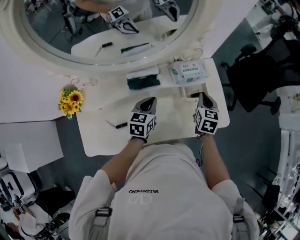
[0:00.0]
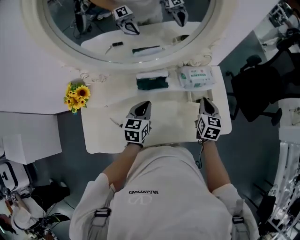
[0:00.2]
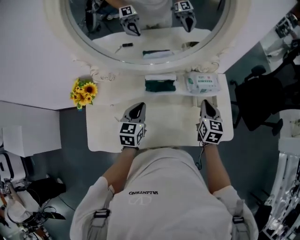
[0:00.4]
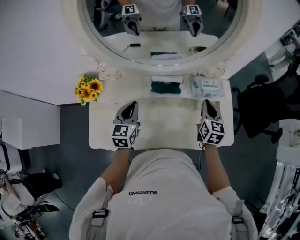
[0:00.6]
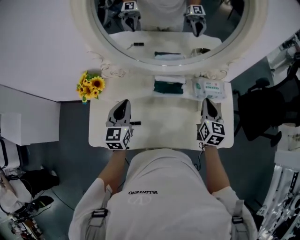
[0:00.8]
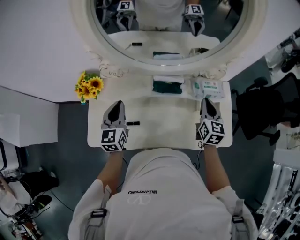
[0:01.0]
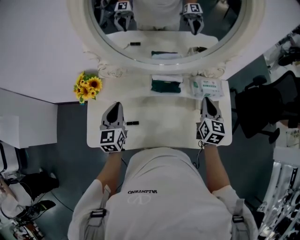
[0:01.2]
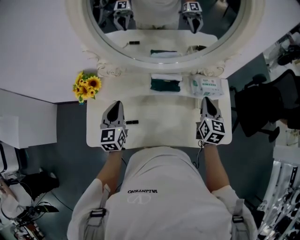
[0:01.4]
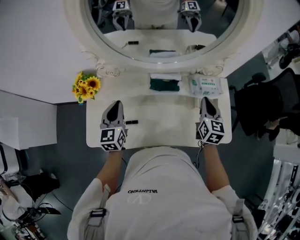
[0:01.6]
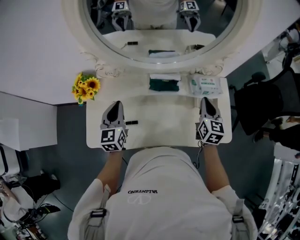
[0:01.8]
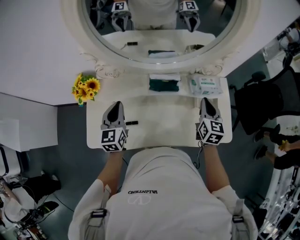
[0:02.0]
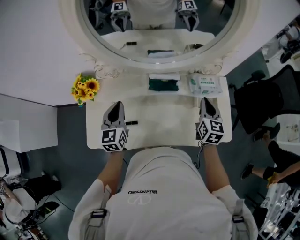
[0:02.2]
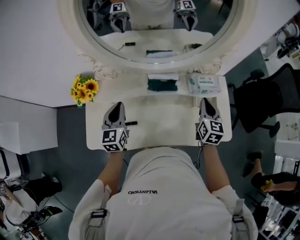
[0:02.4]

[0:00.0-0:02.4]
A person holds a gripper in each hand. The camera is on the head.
0:00.0 to 0:01.2: The right gripper is displaced to the left and upward by about 15 cm, and changes its angle by some 20 degrees, while the left gripper travels to the left by about 25 cm, and turns by approximately 40 degrees.
0:01.2 to 0:02.4: The grippers stay close to where they were, moving slightly.

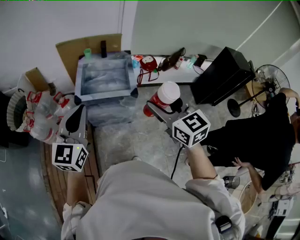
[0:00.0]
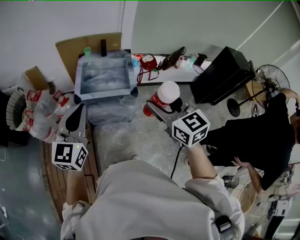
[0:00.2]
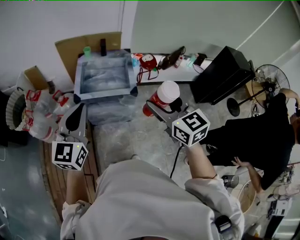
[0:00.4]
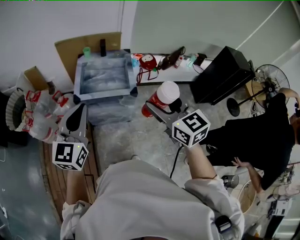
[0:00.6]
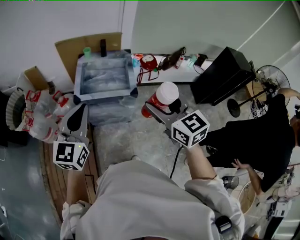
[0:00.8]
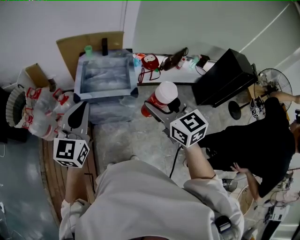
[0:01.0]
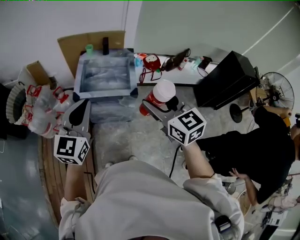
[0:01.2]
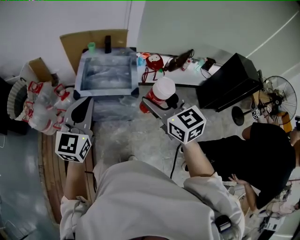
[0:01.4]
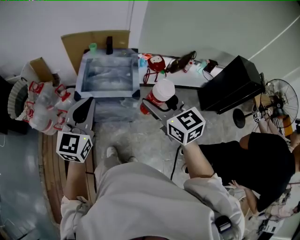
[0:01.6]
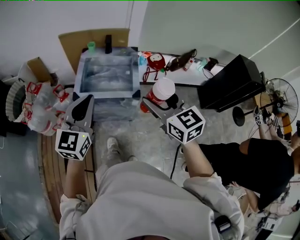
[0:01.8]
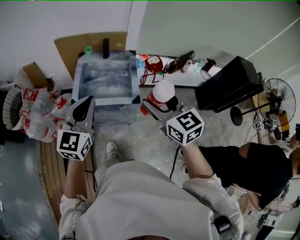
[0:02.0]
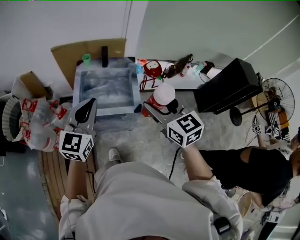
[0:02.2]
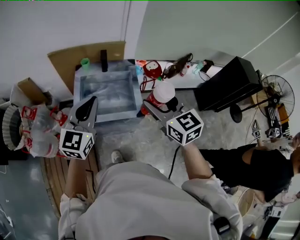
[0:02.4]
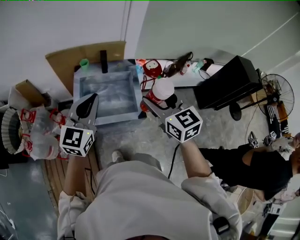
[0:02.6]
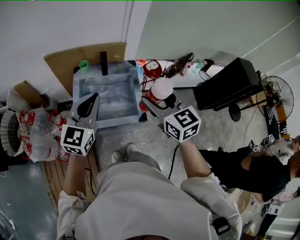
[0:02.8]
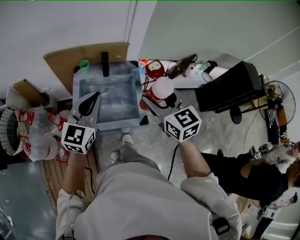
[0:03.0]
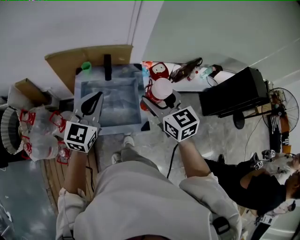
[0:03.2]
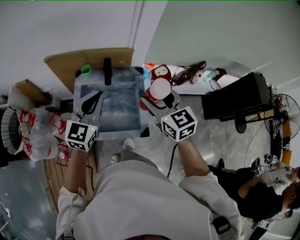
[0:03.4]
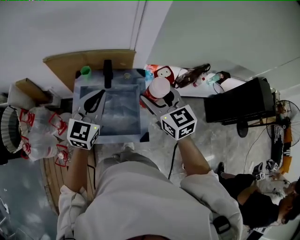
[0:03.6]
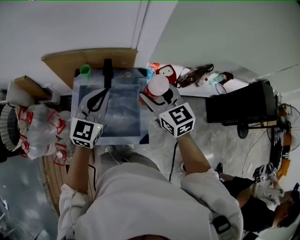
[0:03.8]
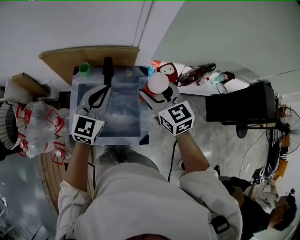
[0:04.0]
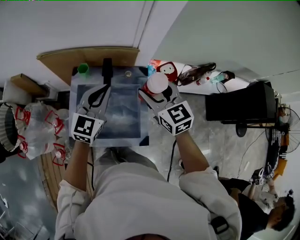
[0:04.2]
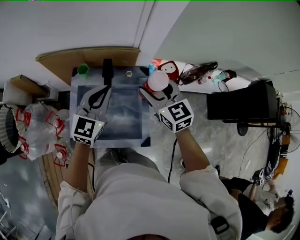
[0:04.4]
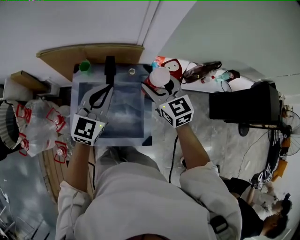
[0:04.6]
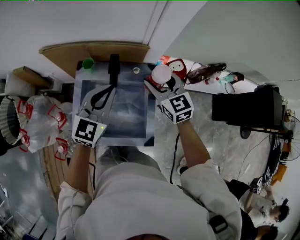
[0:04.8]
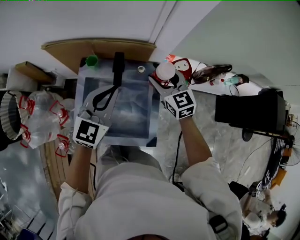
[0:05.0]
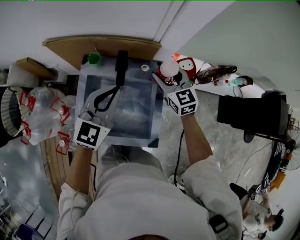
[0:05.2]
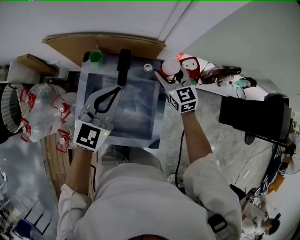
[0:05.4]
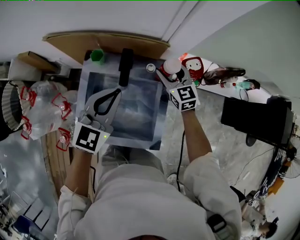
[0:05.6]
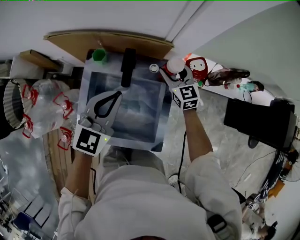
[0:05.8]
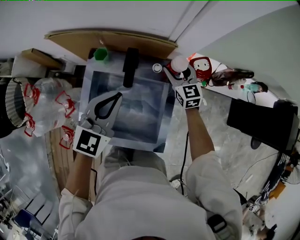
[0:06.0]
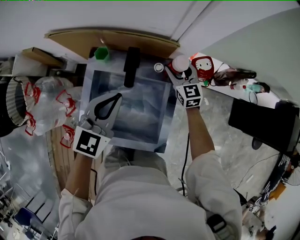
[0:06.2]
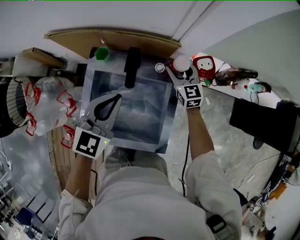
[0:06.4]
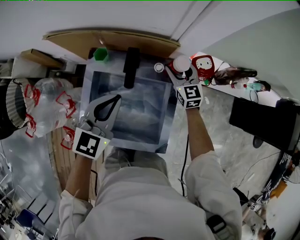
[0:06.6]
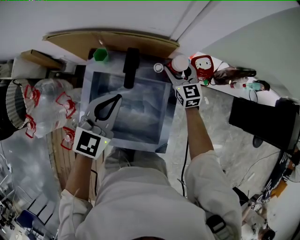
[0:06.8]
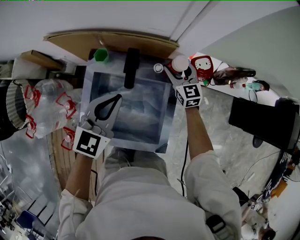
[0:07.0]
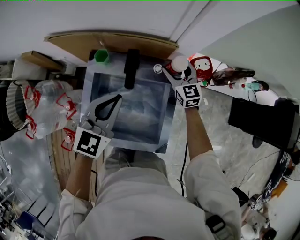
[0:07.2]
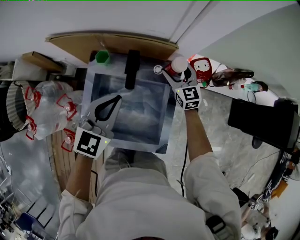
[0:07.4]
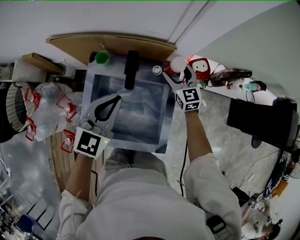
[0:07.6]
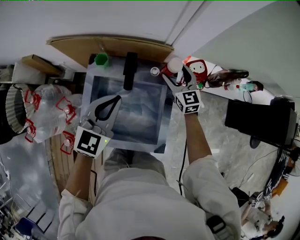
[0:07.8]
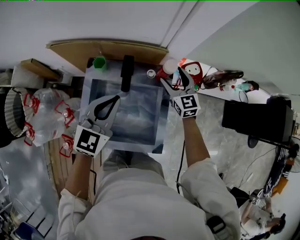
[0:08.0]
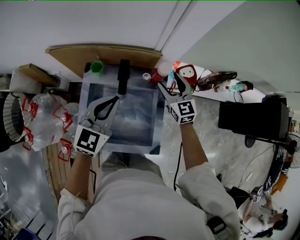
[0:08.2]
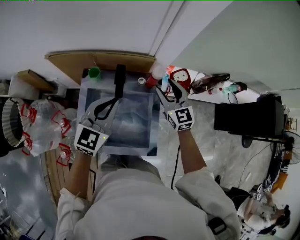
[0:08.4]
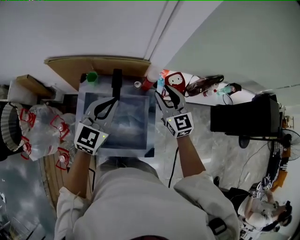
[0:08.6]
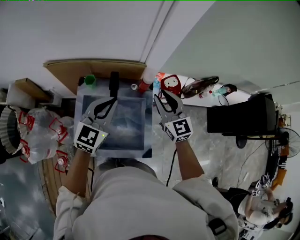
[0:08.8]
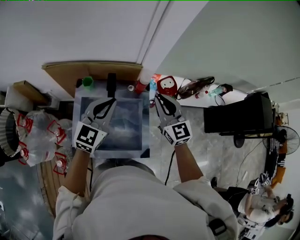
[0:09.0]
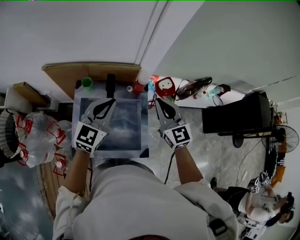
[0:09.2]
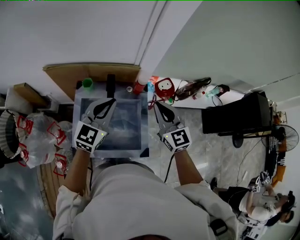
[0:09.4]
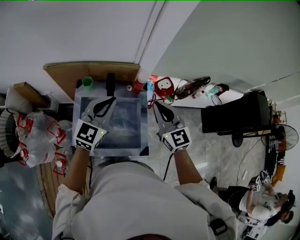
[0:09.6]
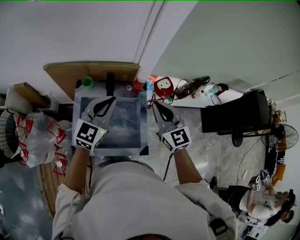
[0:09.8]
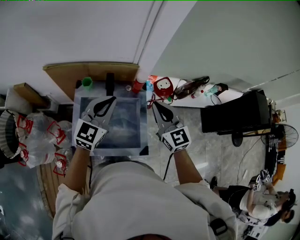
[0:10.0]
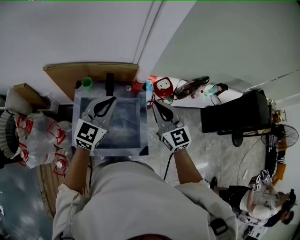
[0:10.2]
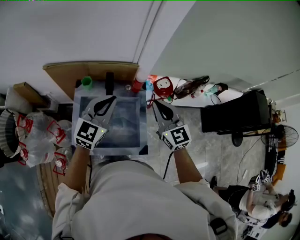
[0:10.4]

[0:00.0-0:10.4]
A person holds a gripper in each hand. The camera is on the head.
0:00.0 to 0:01.4: The left gripper shifts some 5 cm to the right. Meanwhile the right gripper moves some 5 cm.
0:01.4 to 0:03.0: Both grippers move forward, some 30 cm.
0:03.0 to 0:04.4: The grippers both shift forward and downward by approximately 25 cm.
0:04.4 to 0:06.0: The right gripper is displaced downward and forward by approximately 25 cm. The left gripper shifts about 5 cm downward.
0:06.0 to 0:07.4: The grippers move only a little.
0:07.4 to 0:09.0: The right gripper goes roughly 25 cm upward and backward, and closes; the left gripper shifts approximately 10 cm upward.
0:09.0 to 0:10.4: The right gripper goes roughly 5 cm backward.

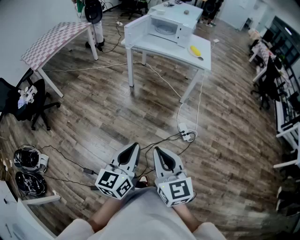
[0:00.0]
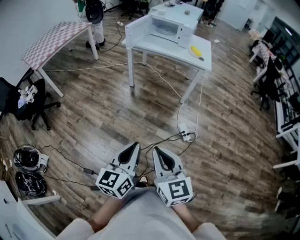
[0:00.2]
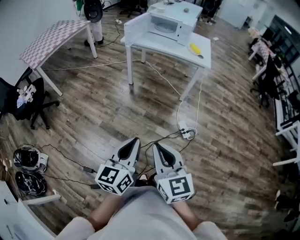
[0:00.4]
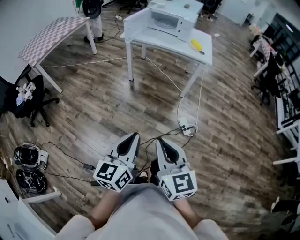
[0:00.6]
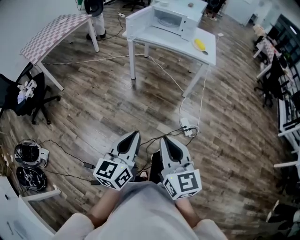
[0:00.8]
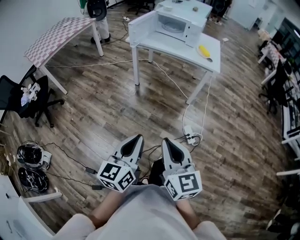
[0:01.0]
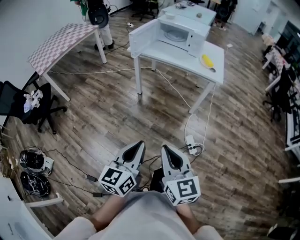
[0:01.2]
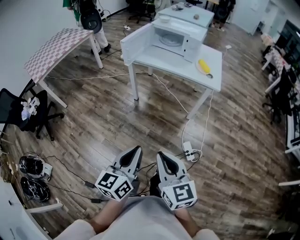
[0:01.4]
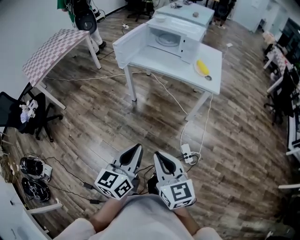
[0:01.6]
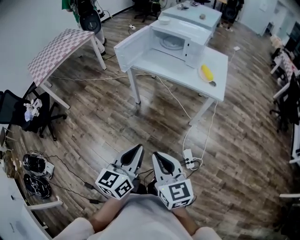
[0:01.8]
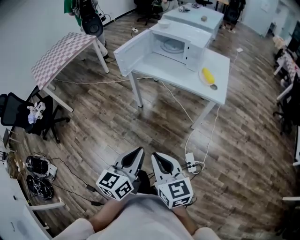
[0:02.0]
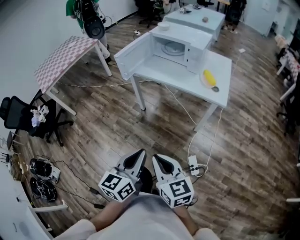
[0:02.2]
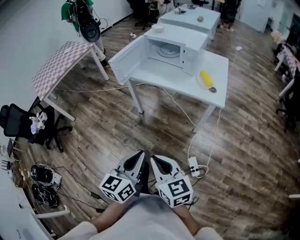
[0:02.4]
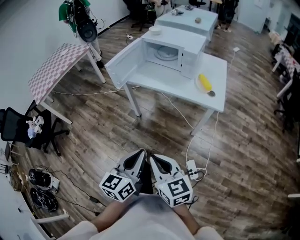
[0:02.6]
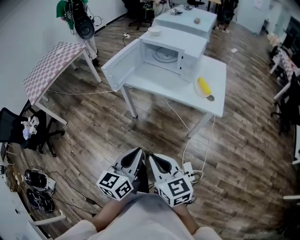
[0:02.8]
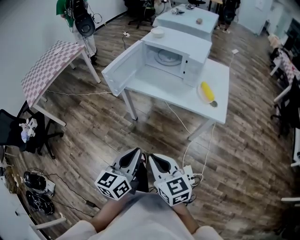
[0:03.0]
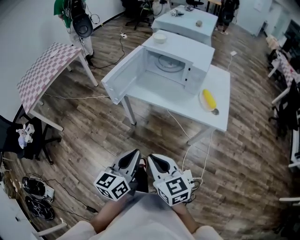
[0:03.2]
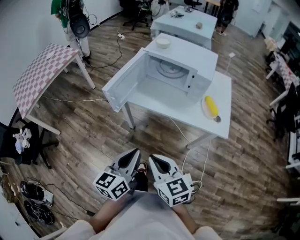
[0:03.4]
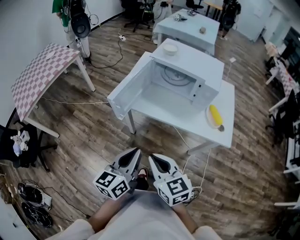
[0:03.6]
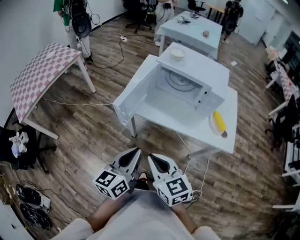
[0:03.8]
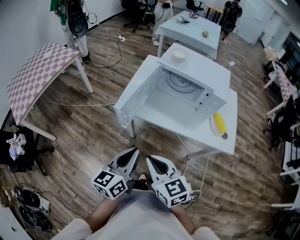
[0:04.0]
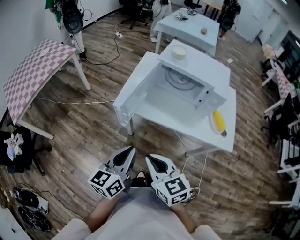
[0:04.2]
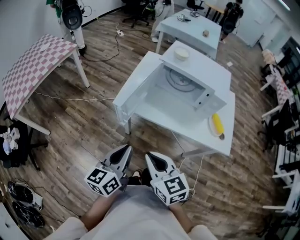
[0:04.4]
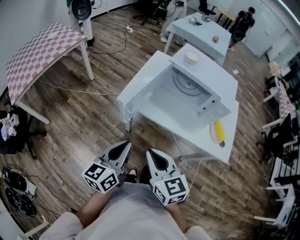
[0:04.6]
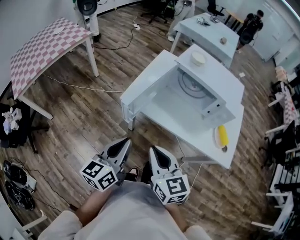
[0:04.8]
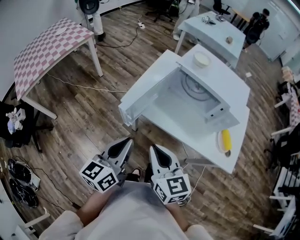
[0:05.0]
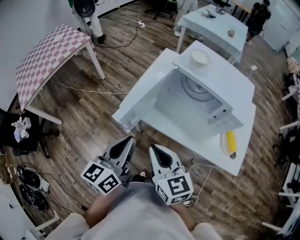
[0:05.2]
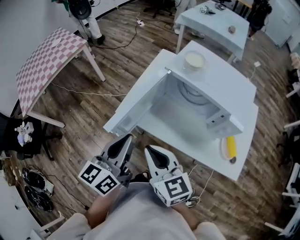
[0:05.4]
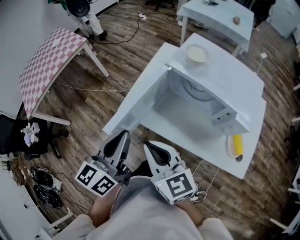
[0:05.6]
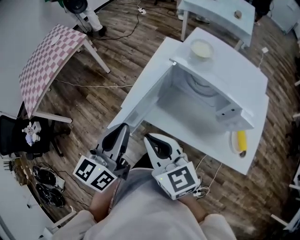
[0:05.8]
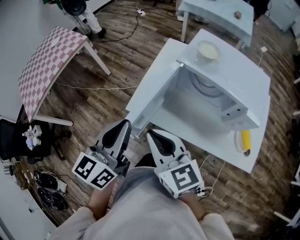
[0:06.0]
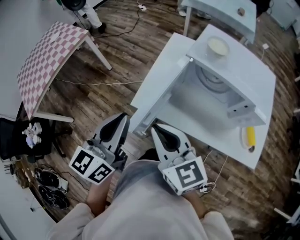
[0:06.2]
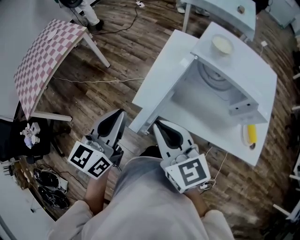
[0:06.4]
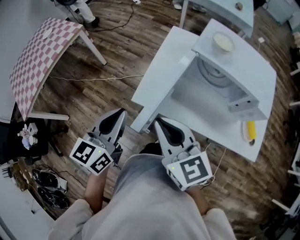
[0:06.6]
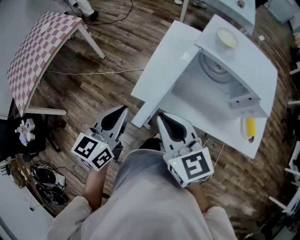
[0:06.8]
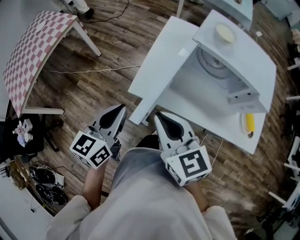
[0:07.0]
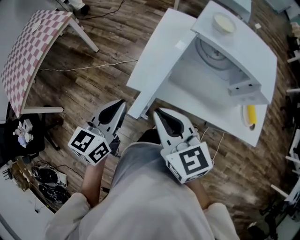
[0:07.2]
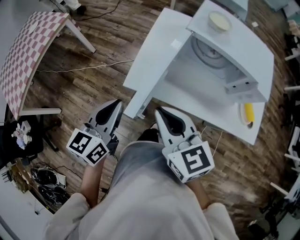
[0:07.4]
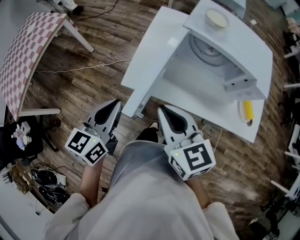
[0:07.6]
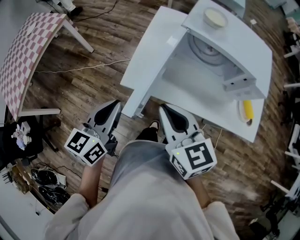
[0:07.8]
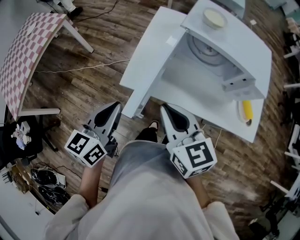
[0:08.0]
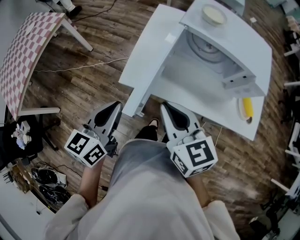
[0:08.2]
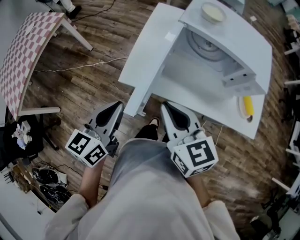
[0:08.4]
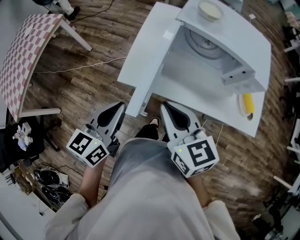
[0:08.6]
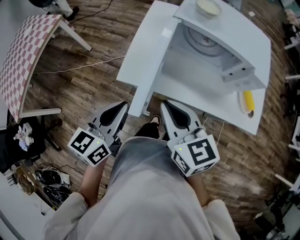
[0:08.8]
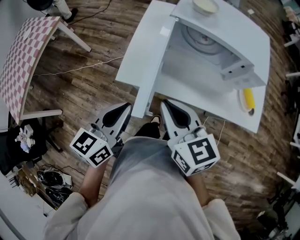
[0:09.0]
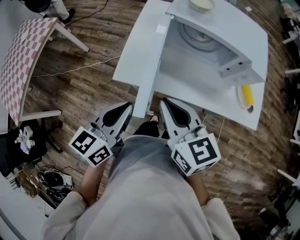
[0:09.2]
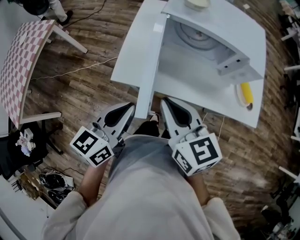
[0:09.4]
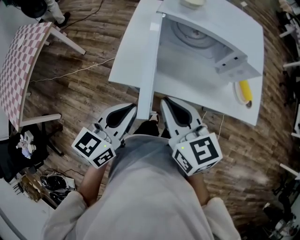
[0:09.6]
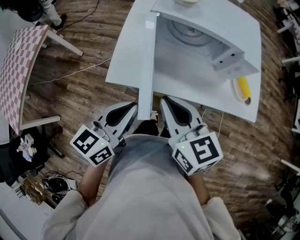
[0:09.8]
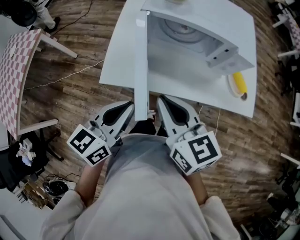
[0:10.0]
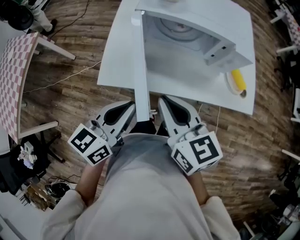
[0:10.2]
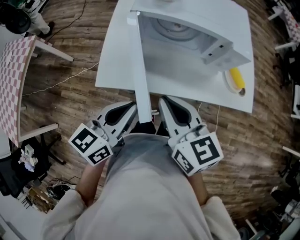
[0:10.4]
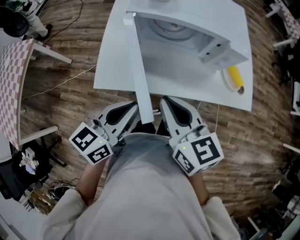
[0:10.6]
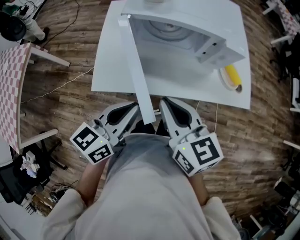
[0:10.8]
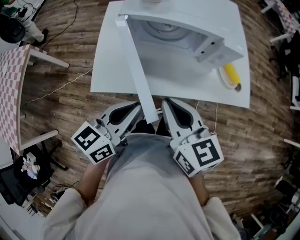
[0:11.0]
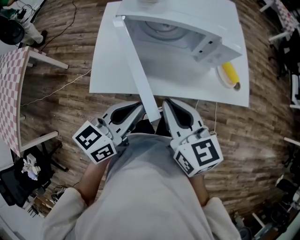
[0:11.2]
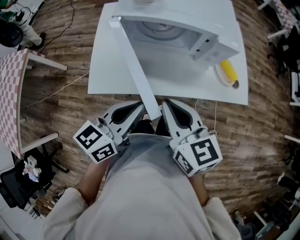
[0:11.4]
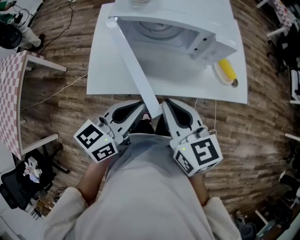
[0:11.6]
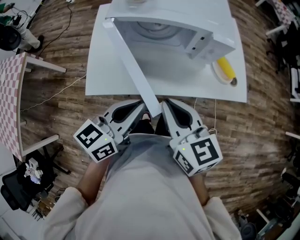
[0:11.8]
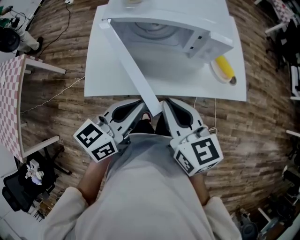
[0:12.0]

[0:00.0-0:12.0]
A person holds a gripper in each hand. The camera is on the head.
0:00.0 to 0:01.6: The two grippers go some 25 cm forward.
0:01.6 to 0:03.0: Both grippers travel together forward, roughly 20 cm.
0:03.0 to 0:04.4: Both grippers move forward and to the left, roughly 25 cm.
0:04.4 to 0:06.0: The left gripper is displaced forward and upward by roughly 20 cm. Meanwhile the right gripper moves forward, about 20 cm.
0:06.0 to 0:07.6: The right gripper heads downward, covering about 5 cm, while the left gripper travels downward and to the left by approximately 15 cm.
0:07.6 to 0:09.0: The left gripper shifts approximately 5 cm to the right.
0:09.0 to 0:10.4: The two grippers go roughly 10 cm to the right.
0:10.4 to 0:12.0: The grippers both shift to the right by roughly 5 cm.
